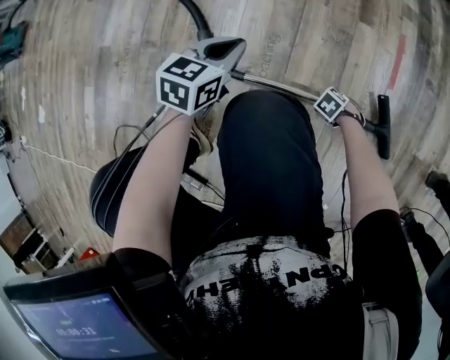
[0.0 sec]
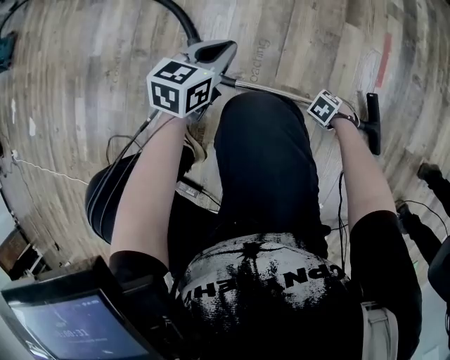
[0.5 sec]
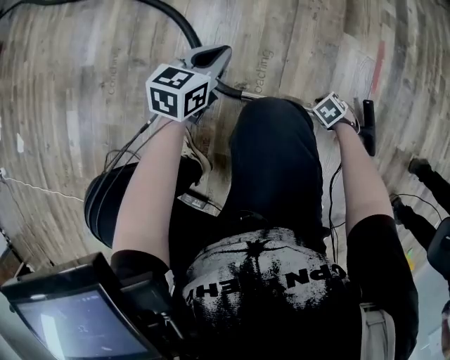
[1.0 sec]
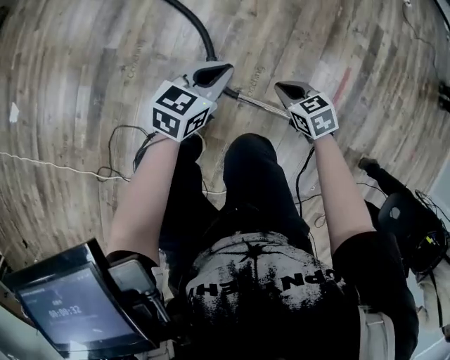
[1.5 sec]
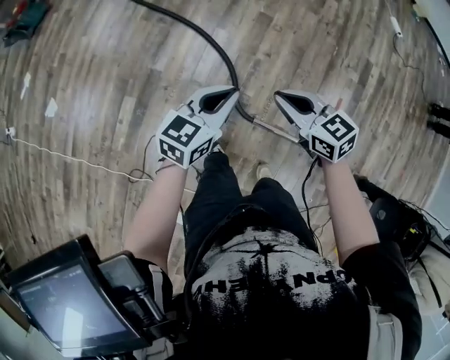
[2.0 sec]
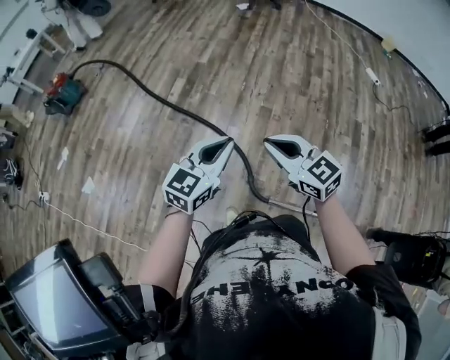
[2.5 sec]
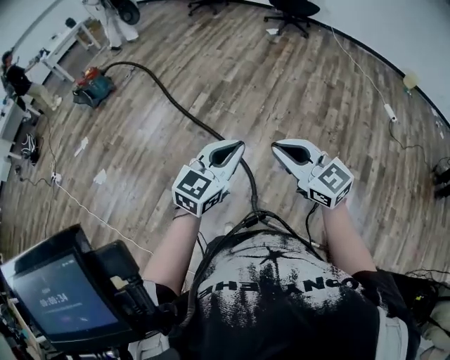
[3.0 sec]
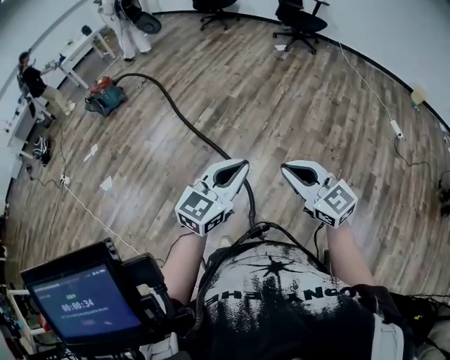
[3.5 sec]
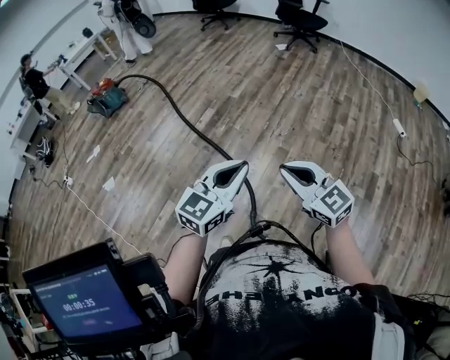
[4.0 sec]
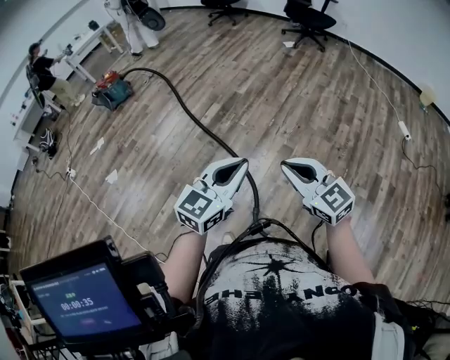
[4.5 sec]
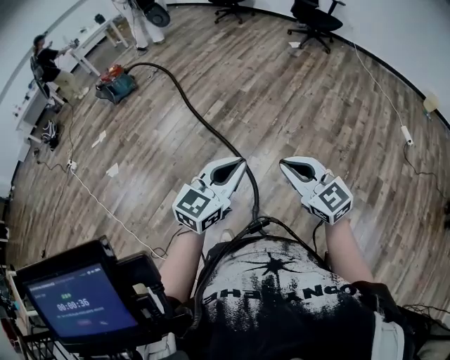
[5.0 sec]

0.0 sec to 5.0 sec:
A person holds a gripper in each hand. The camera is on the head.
0.0 sec to 2.5 sec: Both grippers travel together upward, about 90 cm. The right gripper points its fingers about 60 degrees further upward, and closes up; the left gripper turns by roughly 30 degrees.
2.5 sec to 5.0 sec: Both grippers move to the right and upward, some 15 cm.

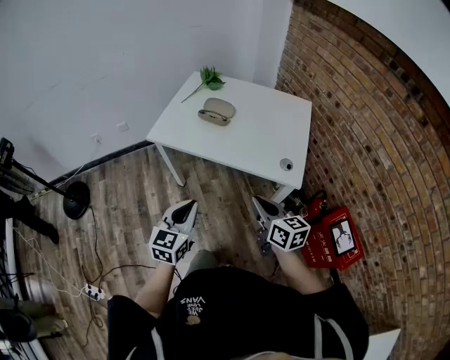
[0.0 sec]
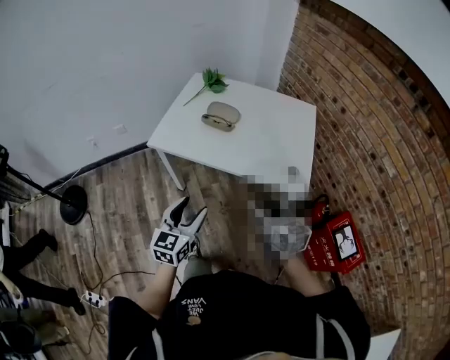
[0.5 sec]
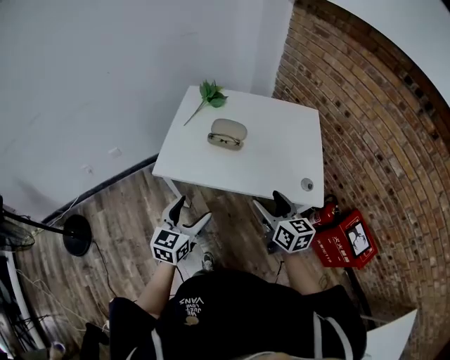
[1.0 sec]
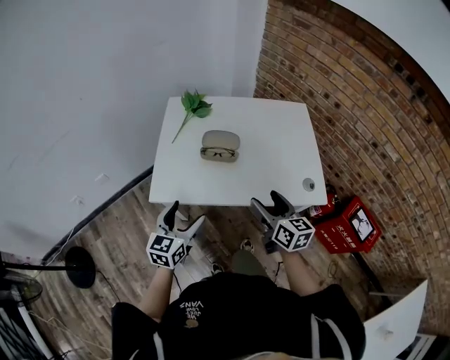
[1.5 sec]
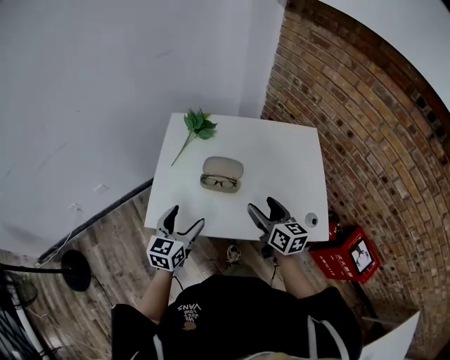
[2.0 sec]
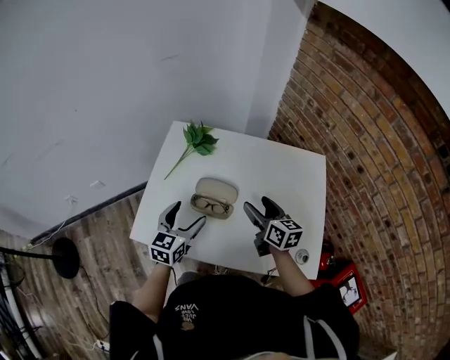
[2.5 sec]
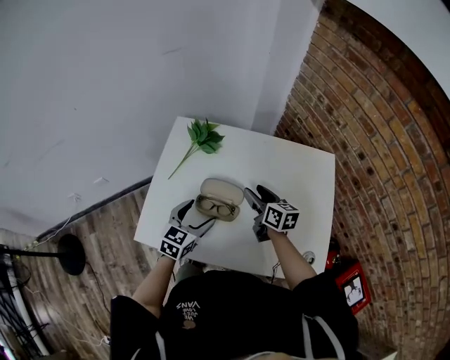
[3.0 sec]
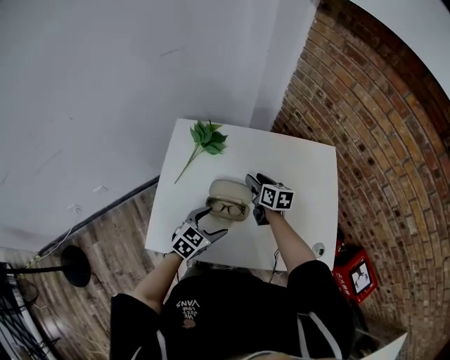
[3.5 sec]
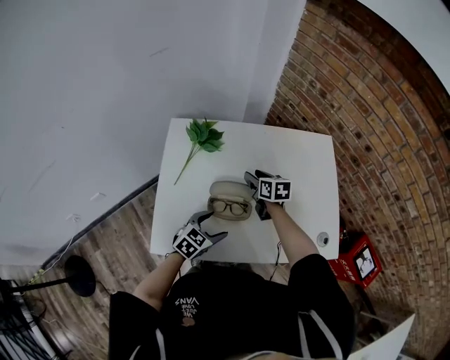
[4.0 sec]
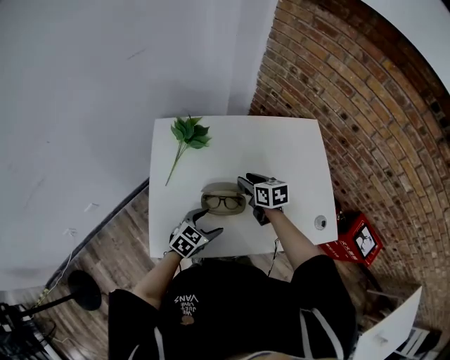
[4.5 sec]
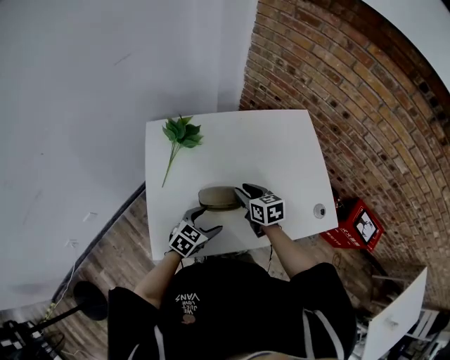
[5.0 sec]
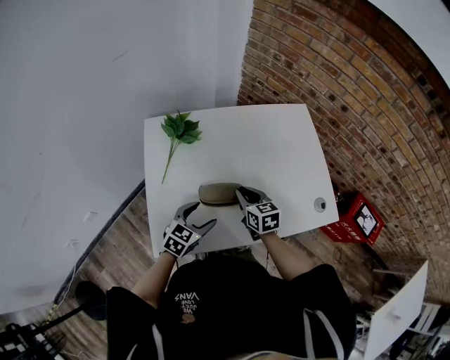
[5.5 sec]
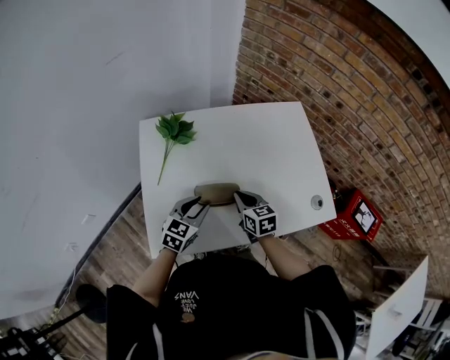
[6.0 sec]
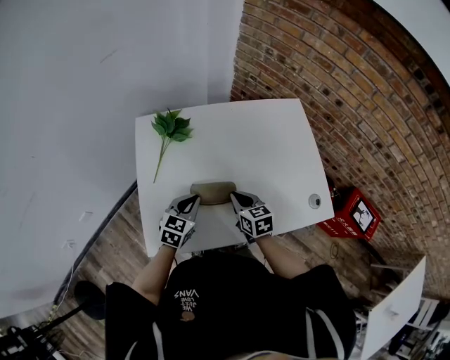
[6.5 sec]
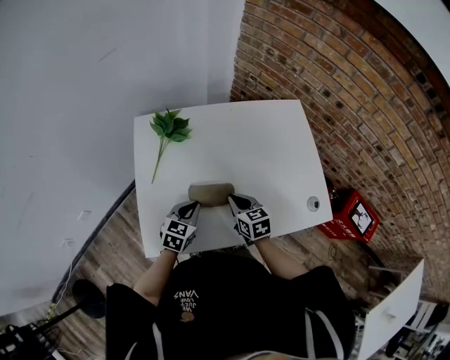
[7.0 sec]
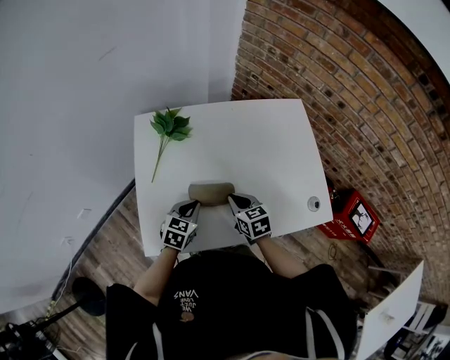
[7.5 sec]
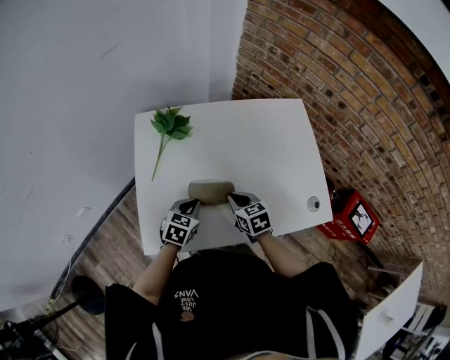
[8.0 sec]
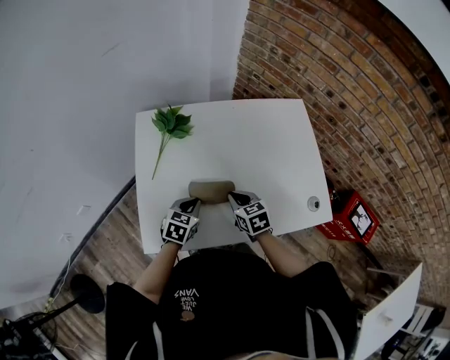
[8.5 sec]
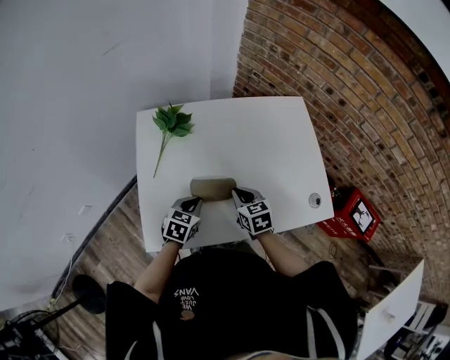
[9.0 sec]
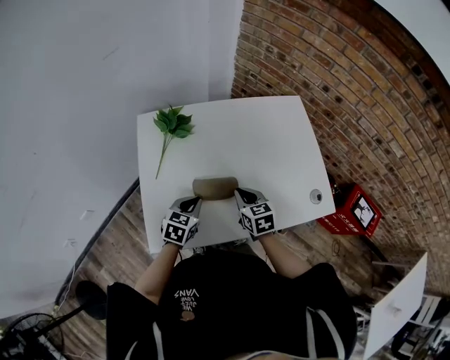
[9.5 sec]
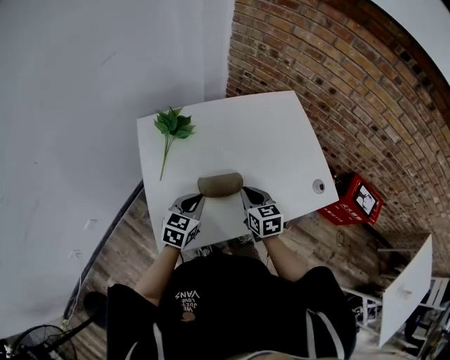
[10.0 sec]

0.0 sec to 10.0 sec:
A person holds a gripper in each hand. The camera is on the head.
0.0 sec to 2.0 sec: Both grippers move forward, some 35 cm. The right gripper opens up. The left gripper opens its fingers.
2.0 sec to 4.0 sec: The left gripper is displaced downward, forward and to the right by roughly 15 cm, and swivels approximately 40 degrees; the right gripper moves forward and downward, about 25 cm, rotates approximately 20 degrees, and closes.
4.0 sec to 6.0 sec: The right gripper heads backward, covering about 15 cm, and closes up. The left gripper ends up some 5 cm from where it was, and closes.
6.0 sec to 8.0 sec: The left gripper closes.
8.0 sec to 10.0 sec: The left gripper is displaced upward by roughly 5 cm.

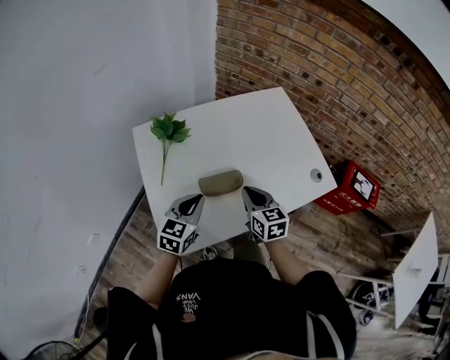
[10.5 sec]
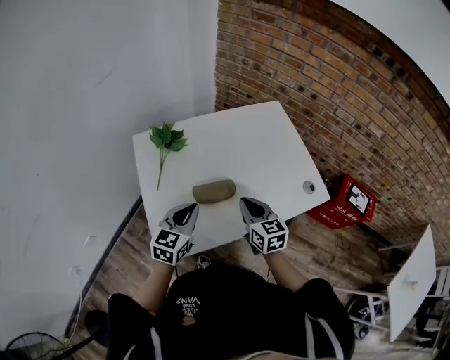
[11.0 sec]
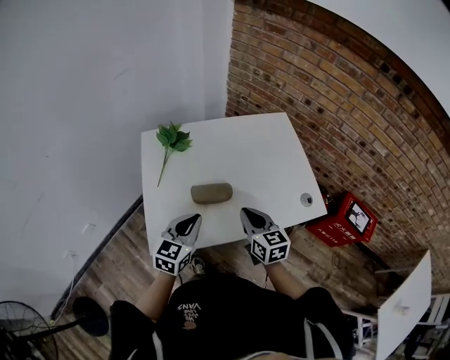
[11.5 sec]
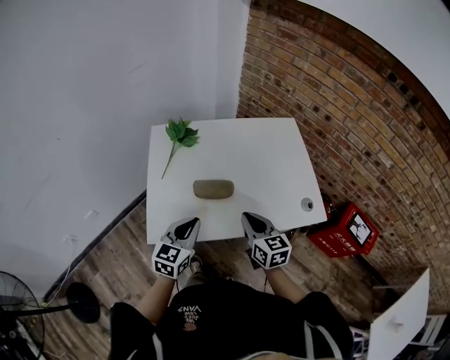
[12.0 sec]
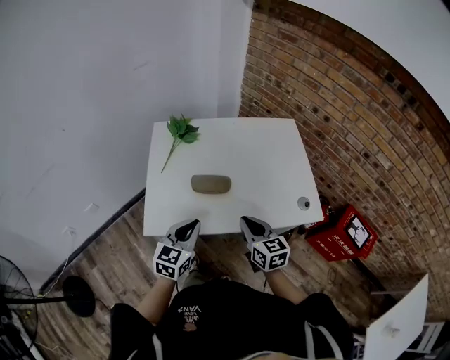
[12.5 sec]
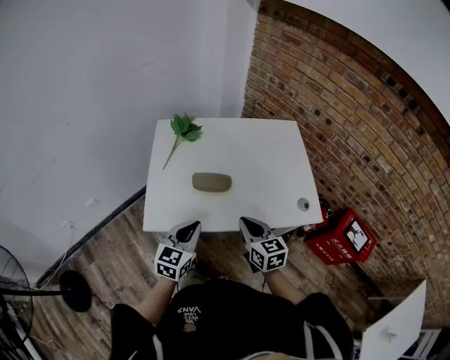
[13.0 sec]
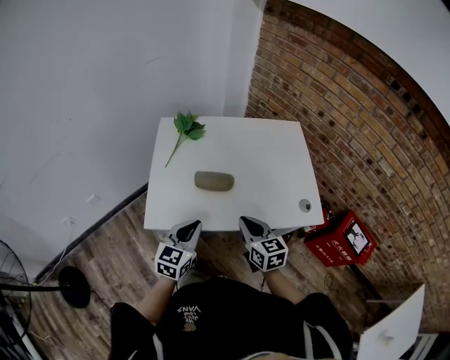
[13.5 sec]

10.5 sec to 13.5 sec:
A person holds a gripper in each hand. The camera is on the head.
10.5 sec to 12.0 sec: Both grippers travel together backward and to the right, about 10 cm.
12.0 sec to 13.5 sec: The left gripper moves approximately 5 cm.

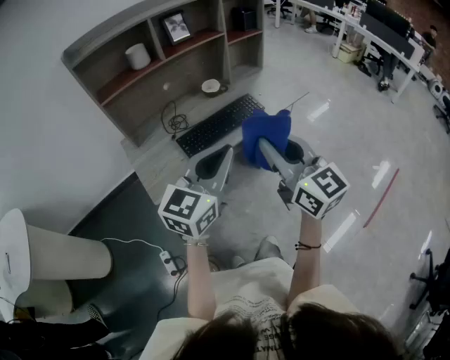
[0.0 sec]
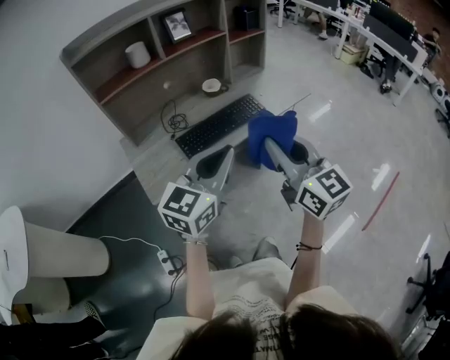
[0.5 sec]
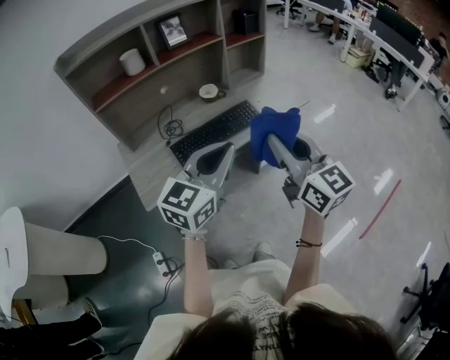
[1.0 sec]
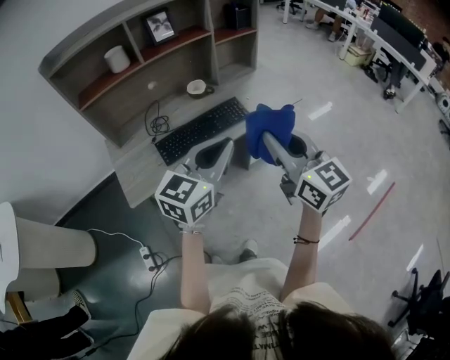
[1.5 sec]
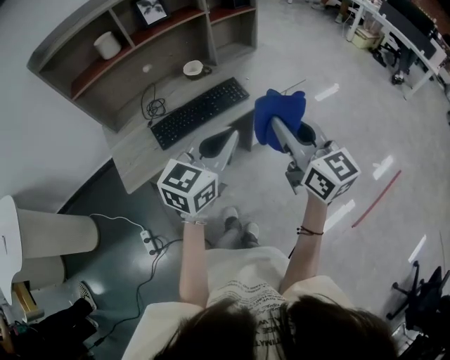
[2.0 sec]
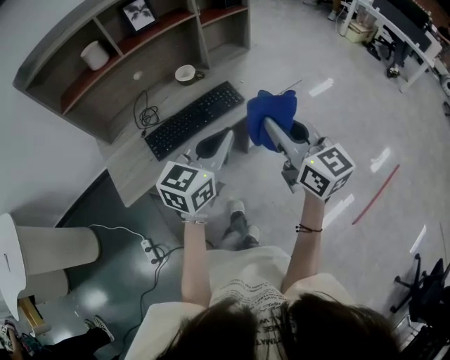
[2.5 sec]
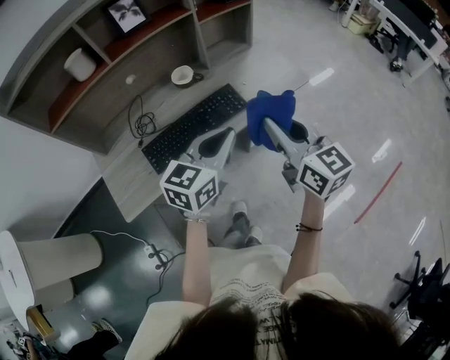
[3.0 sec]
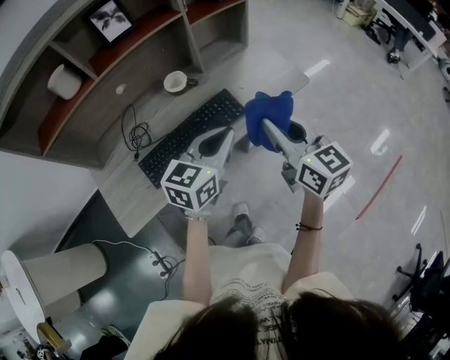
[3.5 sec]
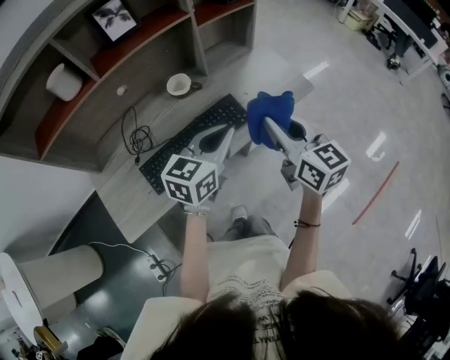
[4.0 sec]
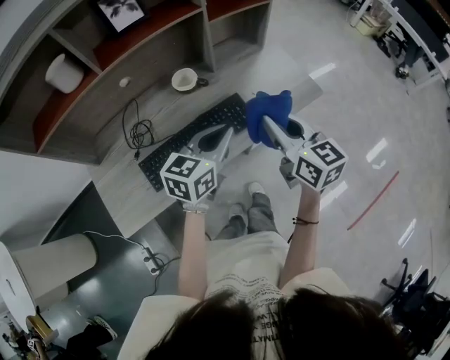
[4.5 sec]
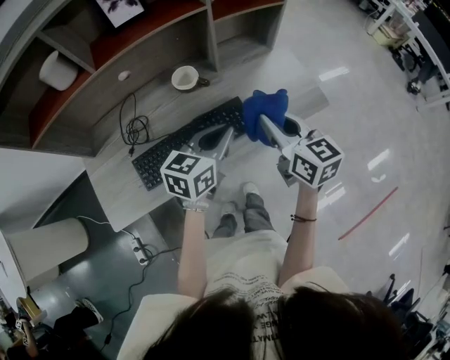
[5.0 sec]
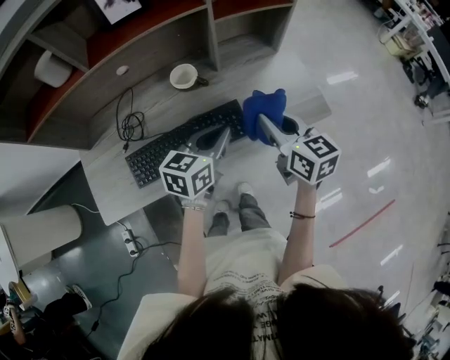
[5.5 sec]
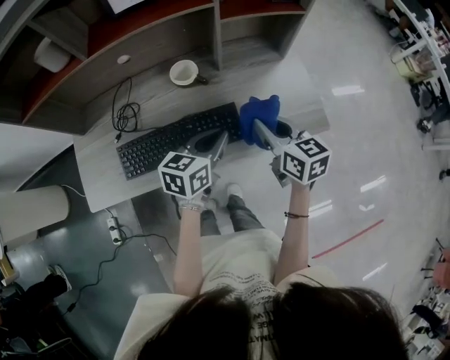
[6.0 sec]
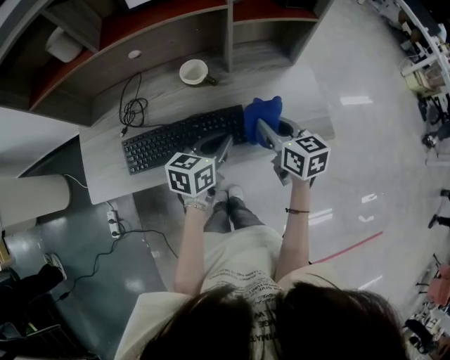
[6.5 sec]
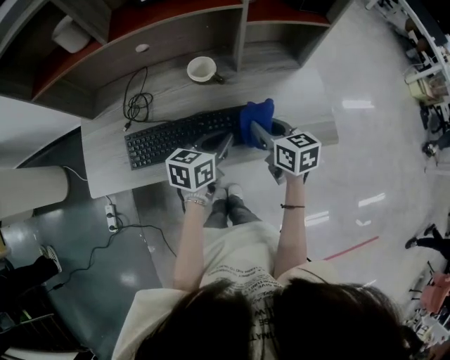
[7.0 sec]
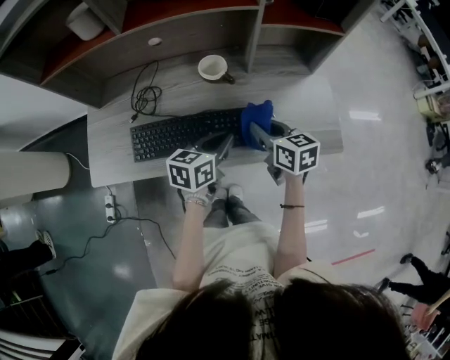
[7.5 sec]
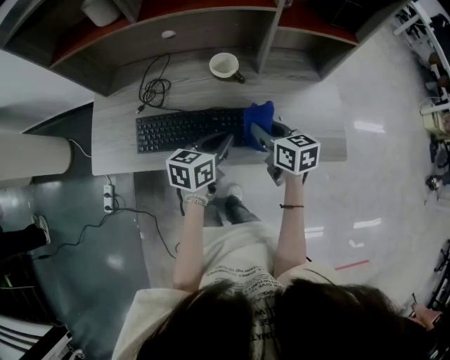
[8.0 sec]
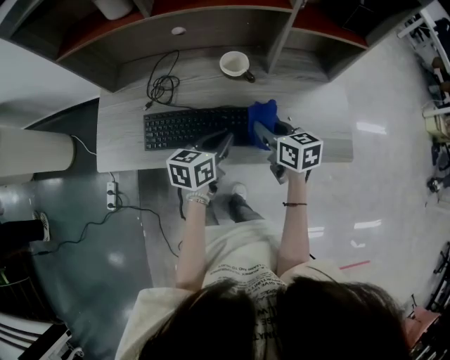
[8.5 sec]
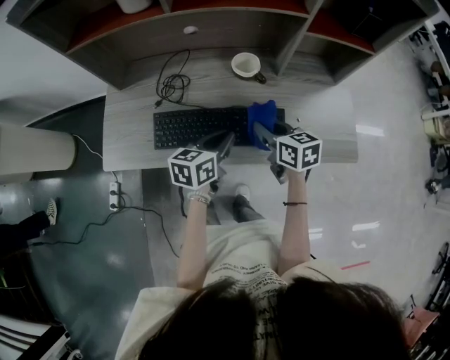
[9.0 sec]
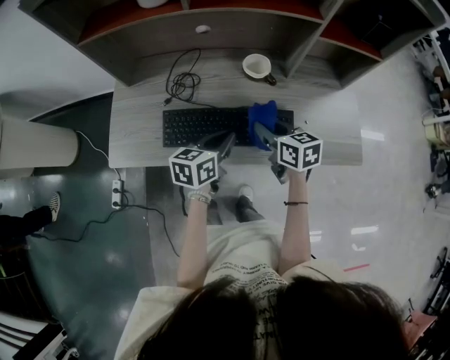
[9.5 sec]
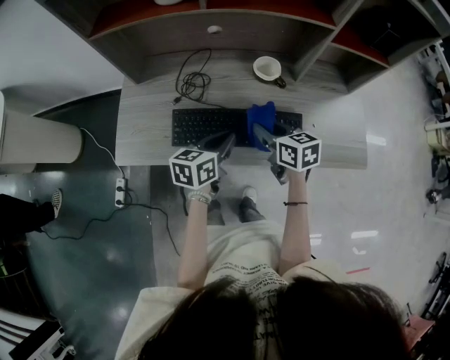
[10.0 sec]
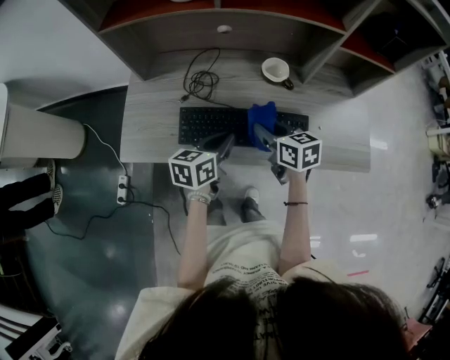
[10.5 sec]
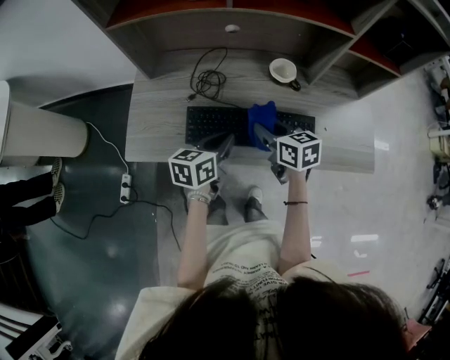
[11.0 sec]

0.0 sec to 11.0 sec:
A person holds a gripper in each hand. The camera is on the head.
0.0 sec to 2.0 sec: Both grippers travel together to the right and forward, roughly 20 cm.
2.0 sec to 3.5 sec: The two grippers go roughly 20 cm forward and downward.
3.5 sec to 5.5 sec: Both grippers move forward and downward, approximately 15 cm.
5.5 sec to 7.5 sec: The left gripper is displaced downward by about 5 cm. Meanwhile the right gripper heads downward and to the left, covering about 10 cm, and swivels roughly 20 degrees.
7.5 sec to 9.0 sec: The grippers both shift to the left by roughly 10 cm.
9.0 sec to 11.0 sec: Both grippers move to the left, approximately 10 cm.
